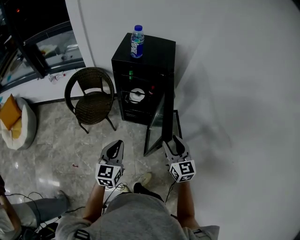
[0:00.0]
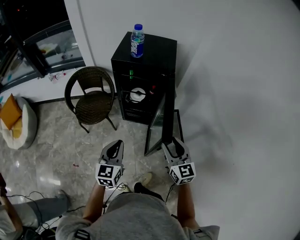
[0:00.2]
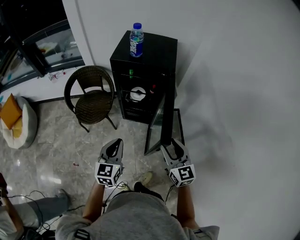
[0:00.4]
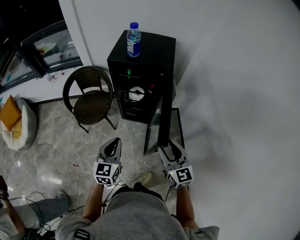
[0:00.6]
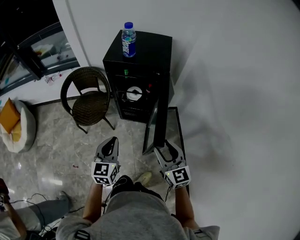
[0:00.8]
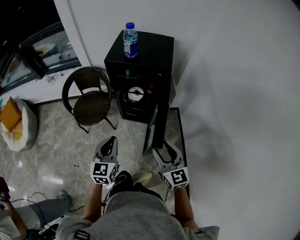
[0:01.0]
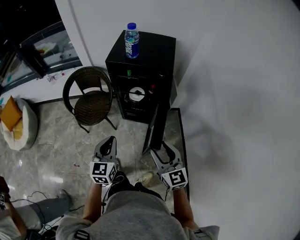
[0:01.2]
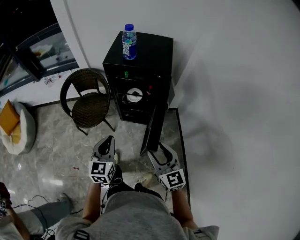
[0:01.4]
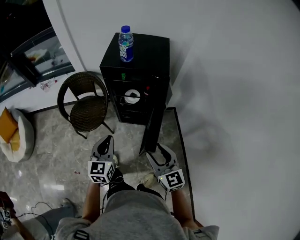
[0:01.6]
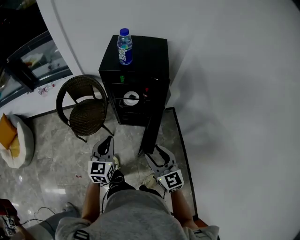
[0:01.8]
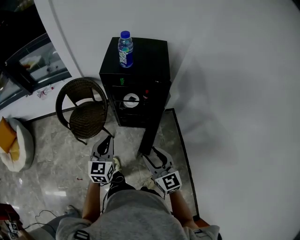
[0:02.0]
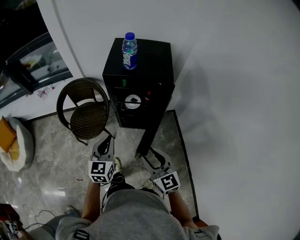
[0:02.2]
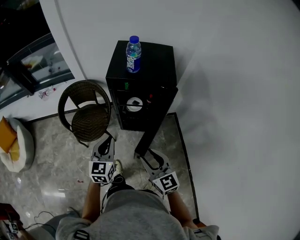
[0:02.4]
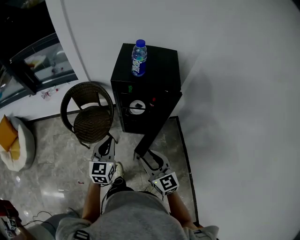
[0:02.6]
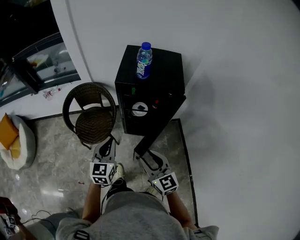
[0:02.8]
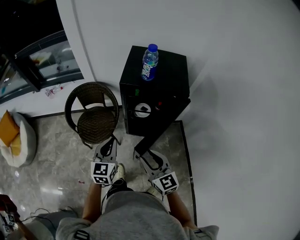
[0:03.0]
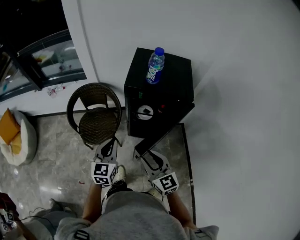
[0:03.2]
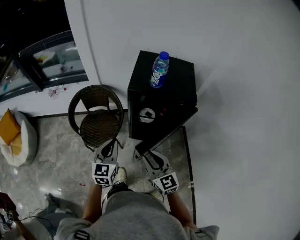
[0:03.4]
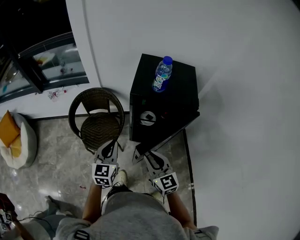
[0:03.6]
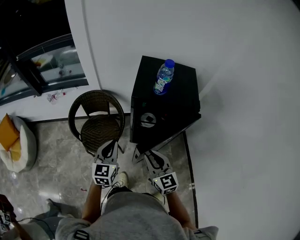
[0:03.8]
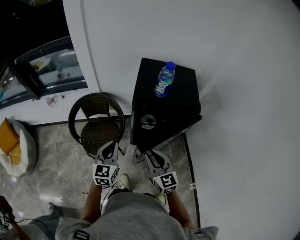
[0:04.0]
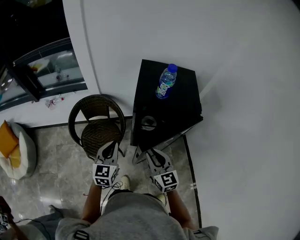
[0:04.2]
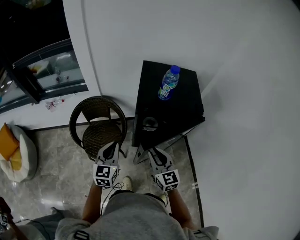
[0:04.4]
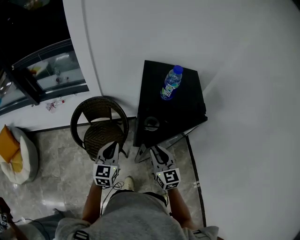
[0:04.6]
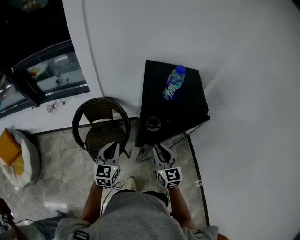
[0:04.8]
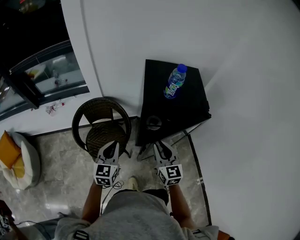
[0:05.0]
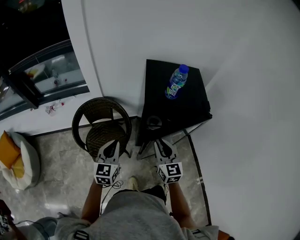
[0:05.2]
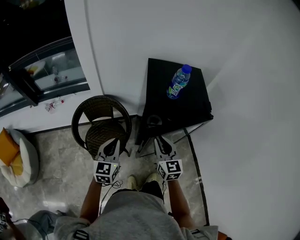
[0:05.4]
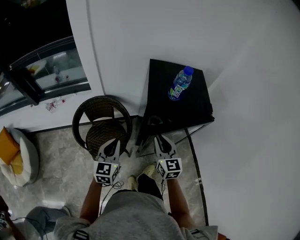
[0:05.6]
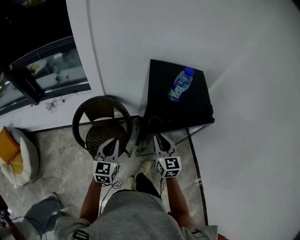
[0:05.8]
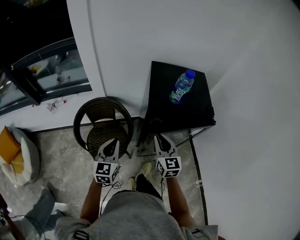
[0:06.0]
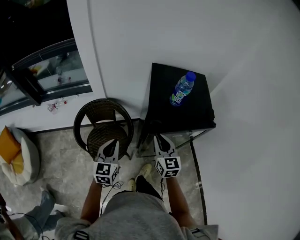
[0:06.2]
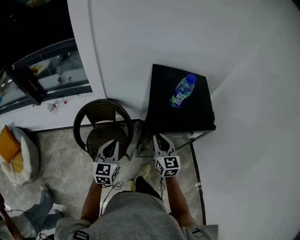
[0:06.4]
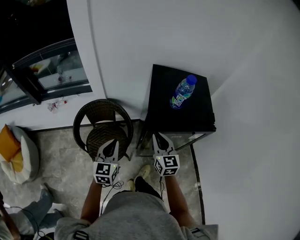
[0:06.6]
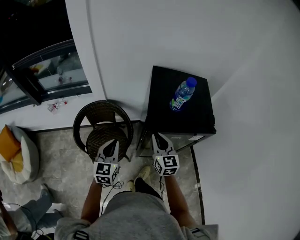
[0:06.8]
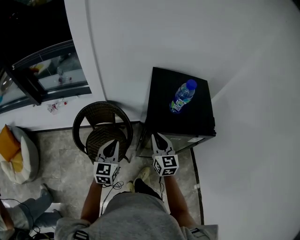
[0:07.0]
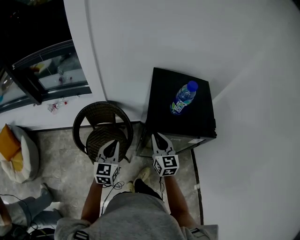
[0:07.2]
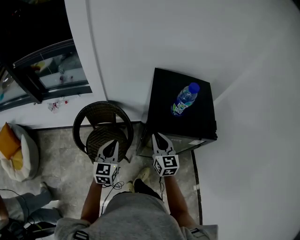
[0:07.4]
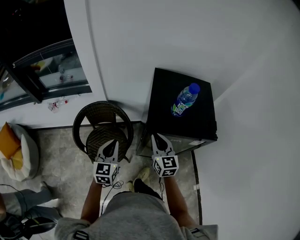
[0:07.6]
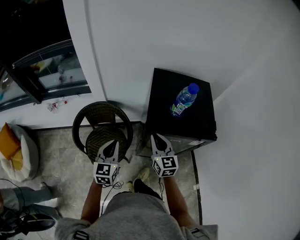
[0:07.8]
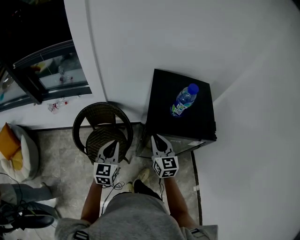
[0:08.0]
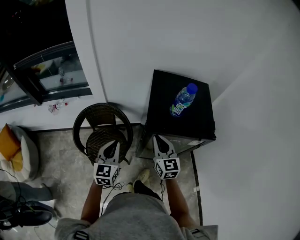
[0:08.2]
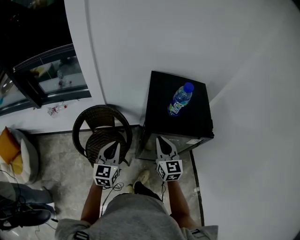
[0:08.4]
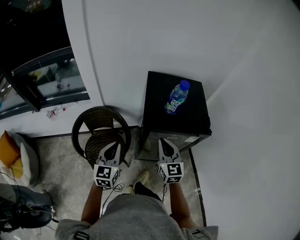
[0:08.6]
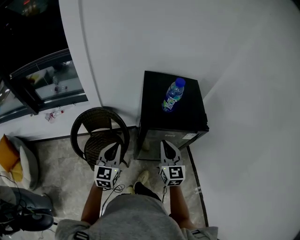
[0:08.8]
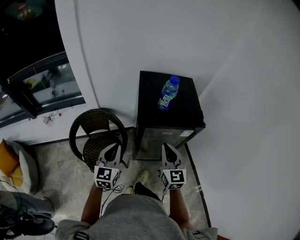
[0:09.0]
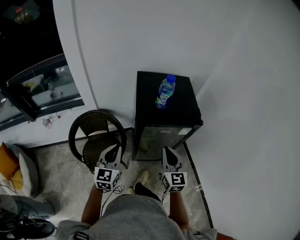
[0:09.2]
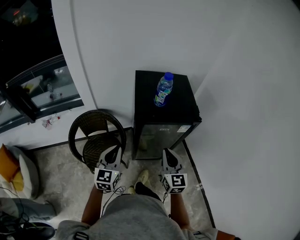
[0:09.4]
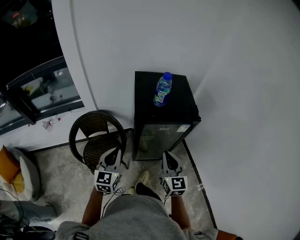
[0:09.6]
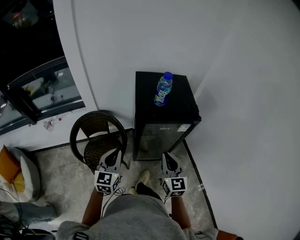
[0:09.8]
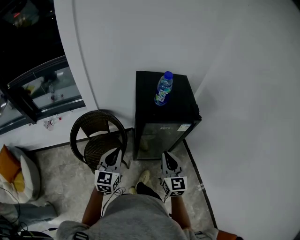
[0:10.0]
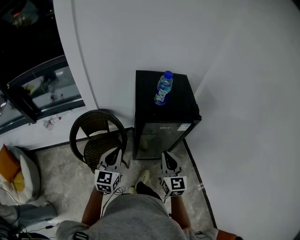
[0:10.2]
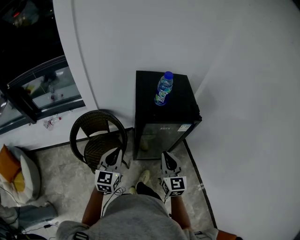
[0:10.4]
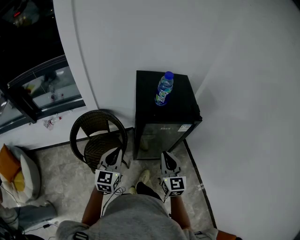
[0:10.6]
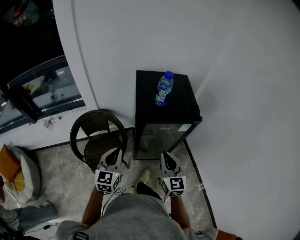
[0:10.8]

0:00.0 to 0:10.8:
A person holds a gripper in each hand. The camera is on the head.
0:00.0 to 0:01.6: The left gripper is displaced forward by approximately 10 cm. The right gripper shifts roughly 5 cm to the left.
0:01.6 to 0:03.0: The right gripper shifts about 15 cm to the left and forward, while the left gripper is displaced forward and to the left by approximately 10 cm.
0:03.0 to 0:04.6: Both grippers travel together forward and to the left, about 15 cm.
0:04.6 to 0:06.2: The right gripper heads forward, covering about 10 cm; the left gripper changes place by about 5 cm.
0:06.2 to 0:07.8: The left gripper shifts by approximately 5 cm, while the right gripper travels forward by about 5 cm.
0:07.8 to 0:09.2: The left gripper heads backward, covering some 5 cm, while the right gripper heads backward, to the right and upward, covering some 15 cm.
0:09.2 to 0:10.8: There are only small adjustments of the grippers.

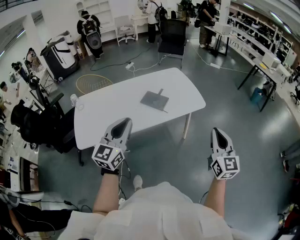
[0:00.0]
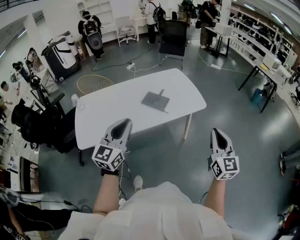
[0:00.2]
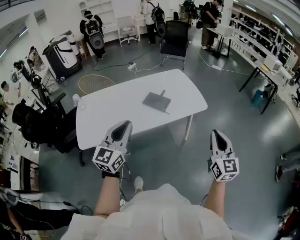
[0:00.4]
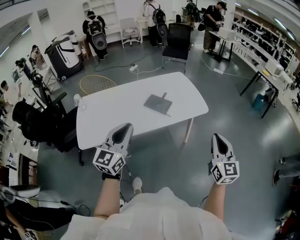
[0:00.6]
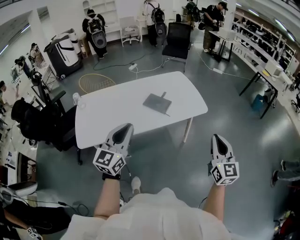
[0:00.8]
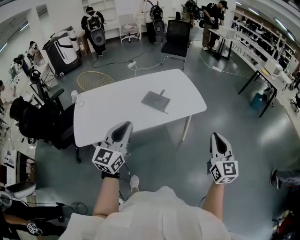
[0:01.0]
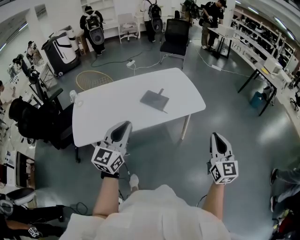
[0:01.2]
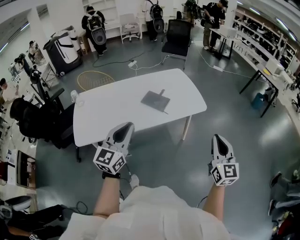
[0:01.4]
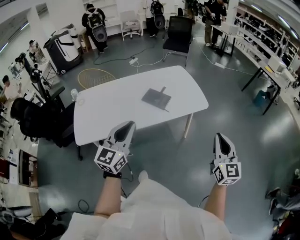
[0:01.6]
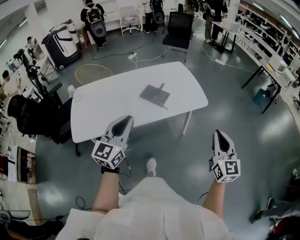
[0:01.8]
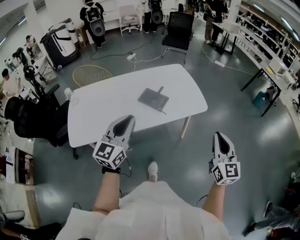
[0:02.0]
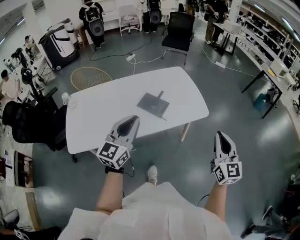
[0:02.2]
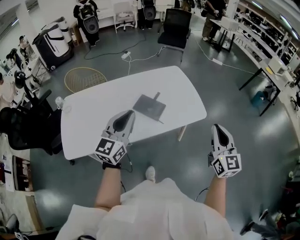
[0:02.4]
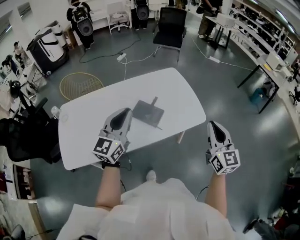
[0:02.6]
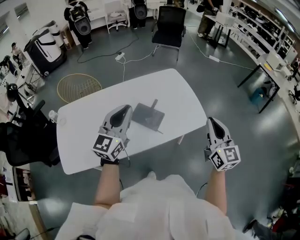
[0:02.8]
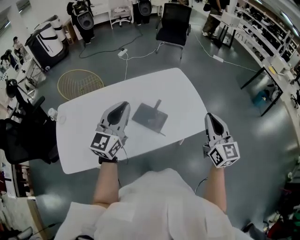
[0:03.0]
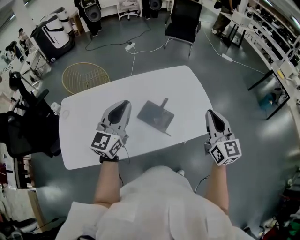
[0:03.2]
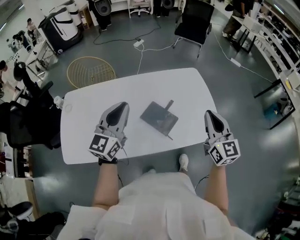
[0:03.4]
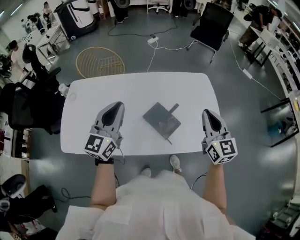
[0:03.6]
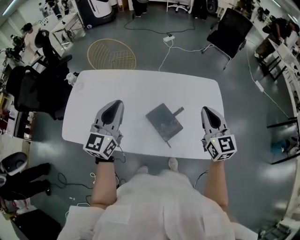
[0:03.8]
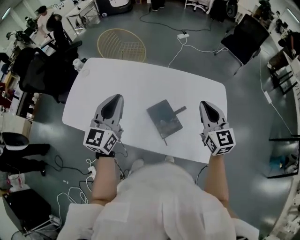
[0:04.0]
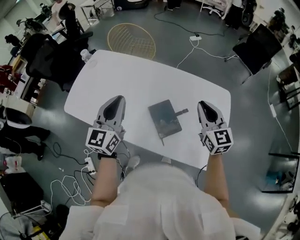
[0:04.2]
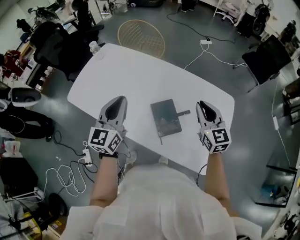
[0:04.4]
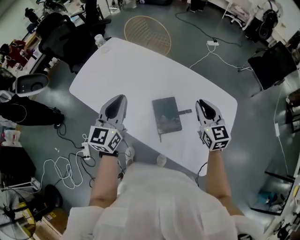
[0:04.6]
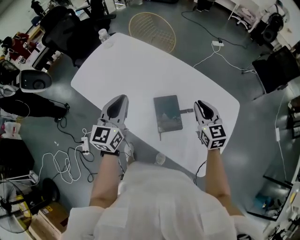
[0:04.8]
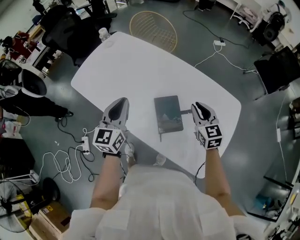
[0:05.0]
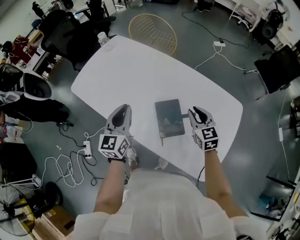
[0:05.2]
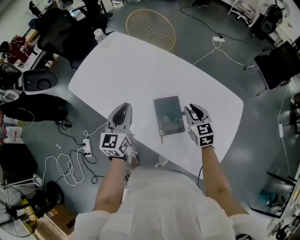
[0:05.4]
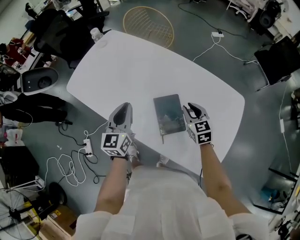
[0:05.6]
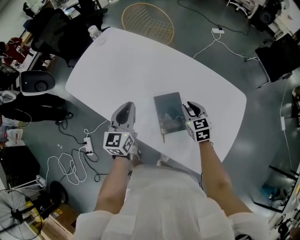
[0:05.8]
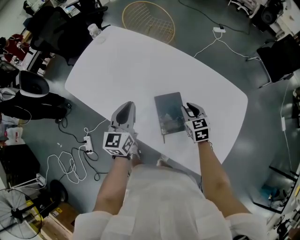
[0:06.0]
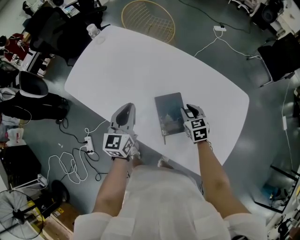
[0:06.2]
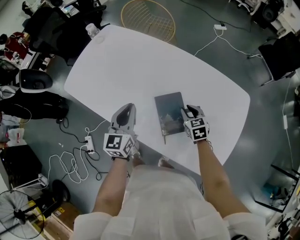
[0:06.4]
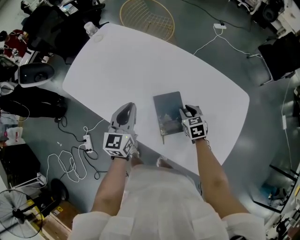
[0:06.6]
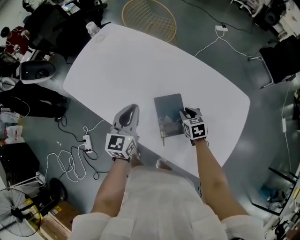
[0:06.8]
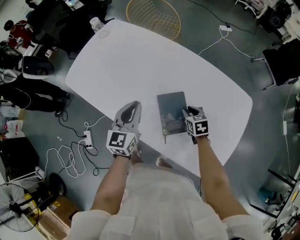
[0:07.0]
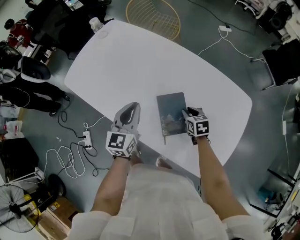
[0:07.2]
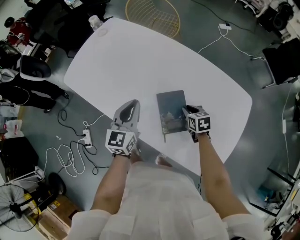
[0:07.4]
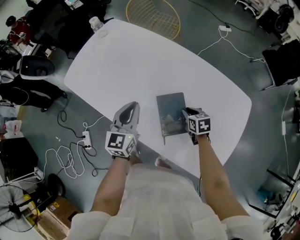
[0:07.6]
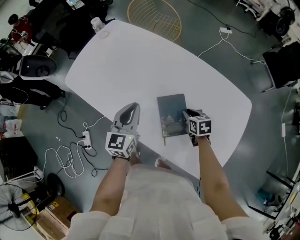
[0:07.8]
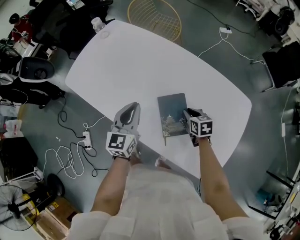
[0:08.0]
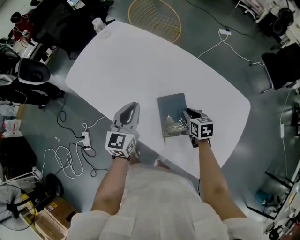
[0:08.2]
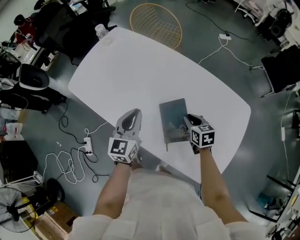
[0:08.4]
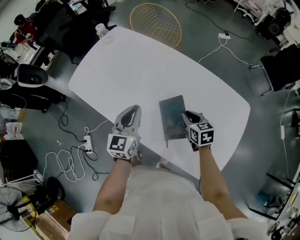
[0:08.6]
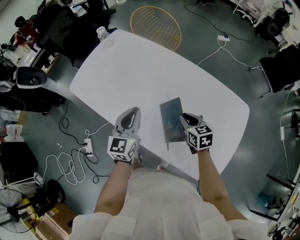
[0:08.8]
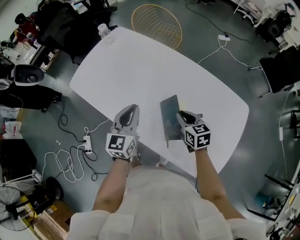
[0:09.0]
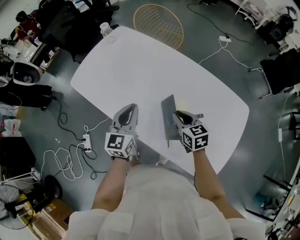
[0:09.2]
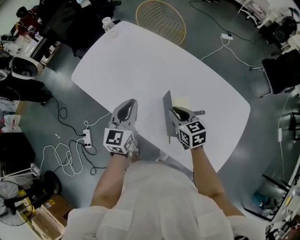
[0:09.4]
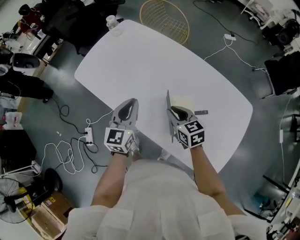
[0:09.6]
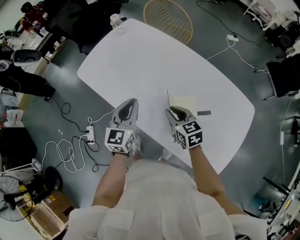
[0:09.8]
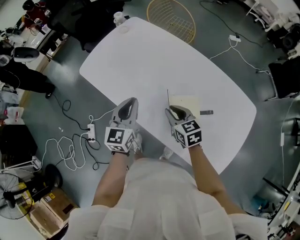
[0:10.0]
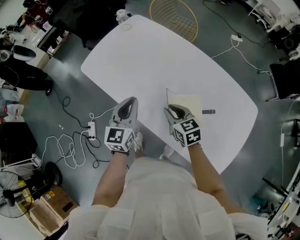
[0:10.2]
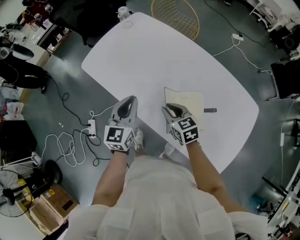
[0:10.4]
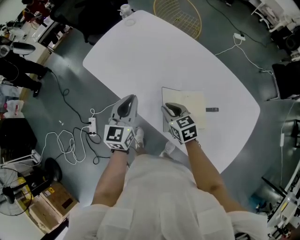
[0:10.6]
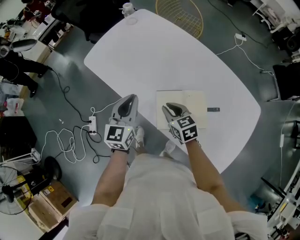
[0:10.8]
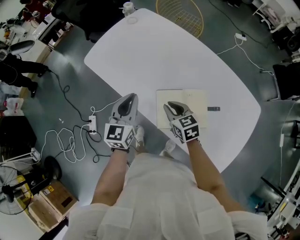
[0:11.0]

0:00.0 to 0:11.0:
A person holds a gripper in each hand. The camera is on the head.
0:00.0 to 0:01.6: The grippers make only small movements.
0:01.6 to 0:03.2: Both grippers travel together forward, roughly 40 cm.
0:03.2 to 0:04.8: The right gripper moves approximately 30 cm, and changes its angle by roughly 50 degrees. The left gripper is displaced downward by roughly 10 cm, and rotates roughly 60 degrees.
0:04.8 to 0:06.2: The left gripper heads downward, covering roughly 10 cm. The right gripper goes about 20 cm downward, and rotates approximately 20 degrees.
0:06.2 to 0:07.8: The grippers stay close to where they were, moving slightly.
0:07.8 to 0:09.4: The left gripper moves to the left, some 5 cm, while the right gripper goes roughly 20 cm upward and to the left, and turns by some 20 degrees.
0:09.4 to 0:11.0: Both grippers travel together to the left, roughly 10 cm.

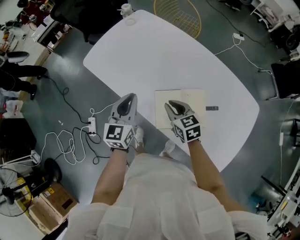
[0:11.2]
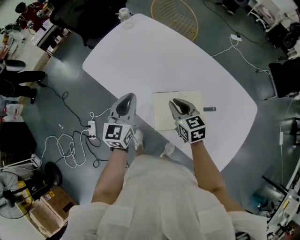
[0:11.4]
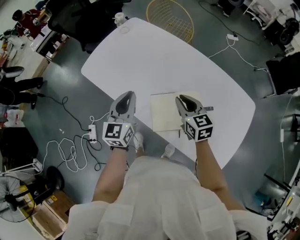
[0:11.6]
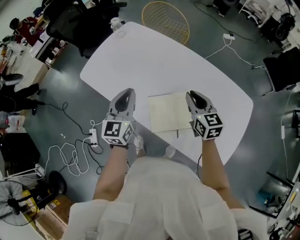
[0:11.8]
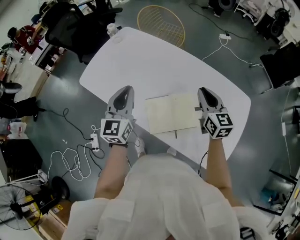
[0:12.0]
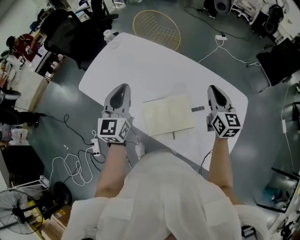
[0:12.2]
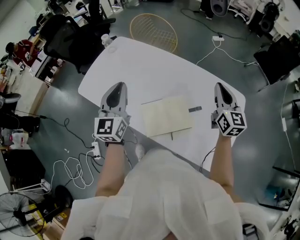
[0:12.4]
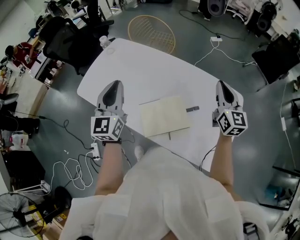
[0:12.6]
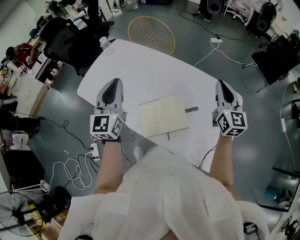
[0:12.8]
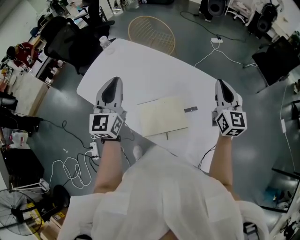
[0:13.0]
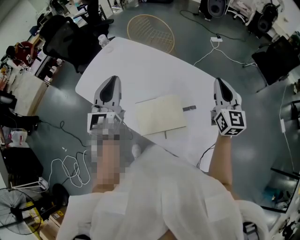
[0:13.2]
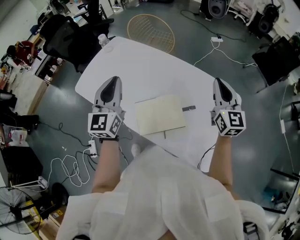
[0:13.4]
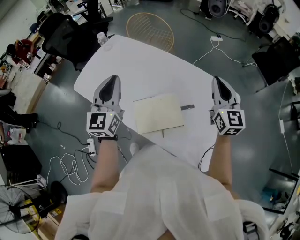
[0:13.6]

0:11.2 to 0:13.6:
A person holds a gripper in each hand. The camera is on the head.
0:11.2 to 0:12.4: The left gripper goes some 15 cm upward and to the right, while the right gripper moves to the right and upward, roughly 35 cm, and points its fingers approximately 30 degrees further upward.
0:12.4 to 0:13.6: There are only small adjustments of the grippers.
